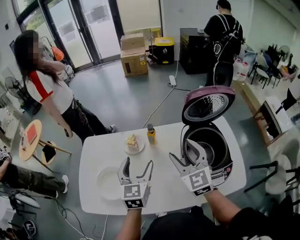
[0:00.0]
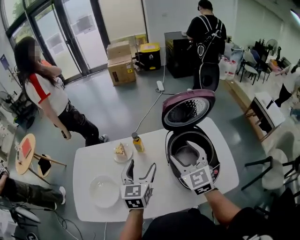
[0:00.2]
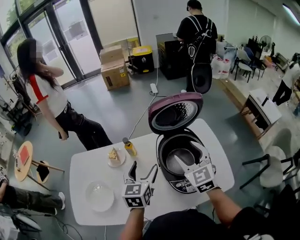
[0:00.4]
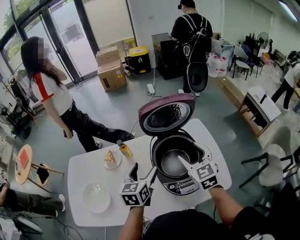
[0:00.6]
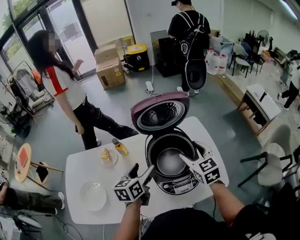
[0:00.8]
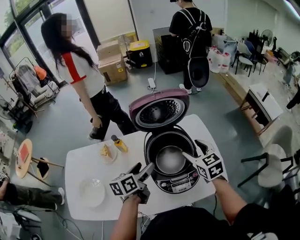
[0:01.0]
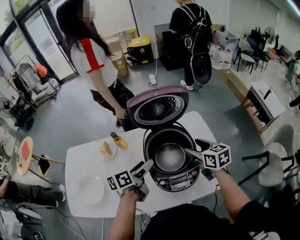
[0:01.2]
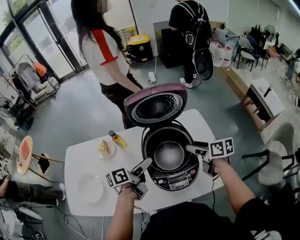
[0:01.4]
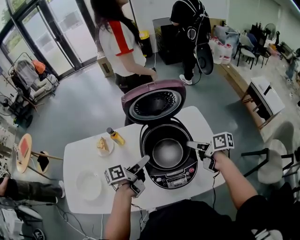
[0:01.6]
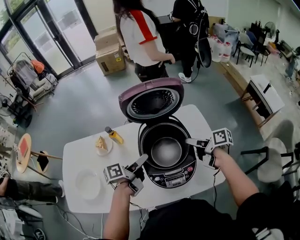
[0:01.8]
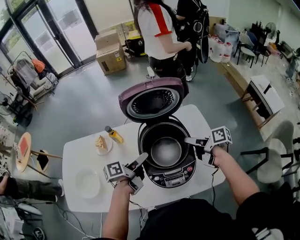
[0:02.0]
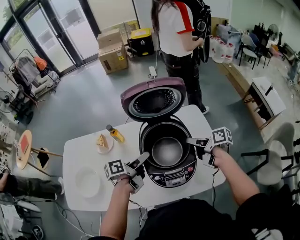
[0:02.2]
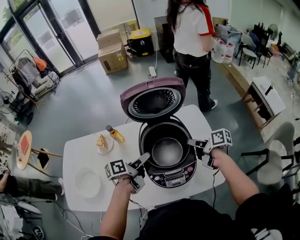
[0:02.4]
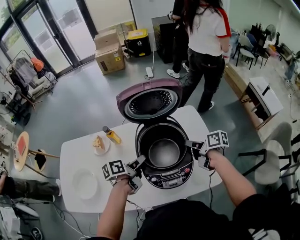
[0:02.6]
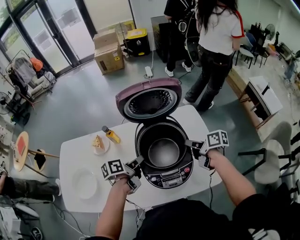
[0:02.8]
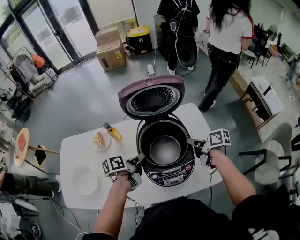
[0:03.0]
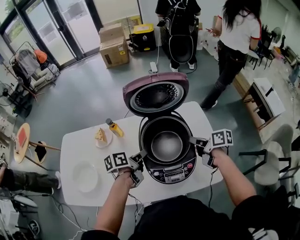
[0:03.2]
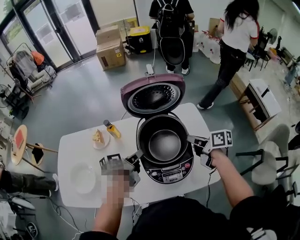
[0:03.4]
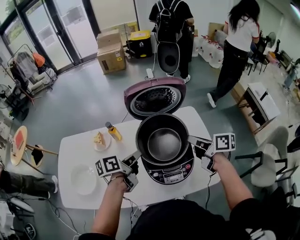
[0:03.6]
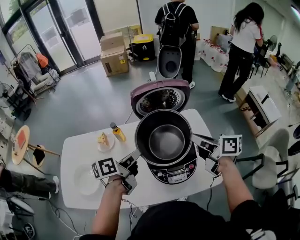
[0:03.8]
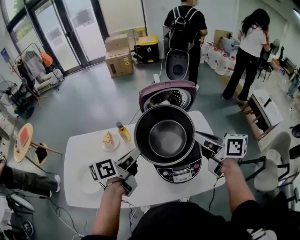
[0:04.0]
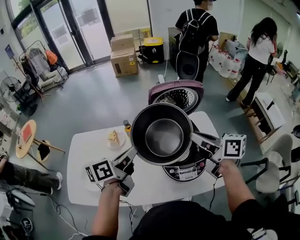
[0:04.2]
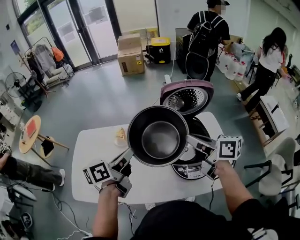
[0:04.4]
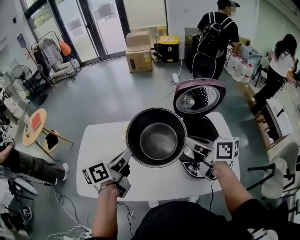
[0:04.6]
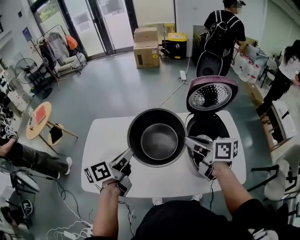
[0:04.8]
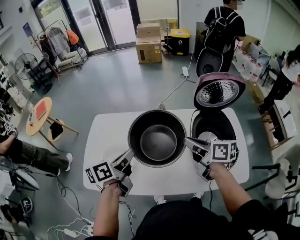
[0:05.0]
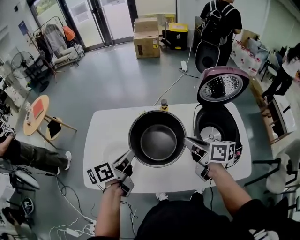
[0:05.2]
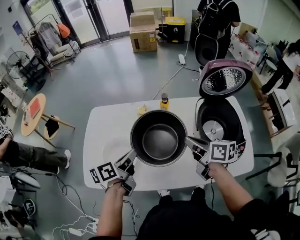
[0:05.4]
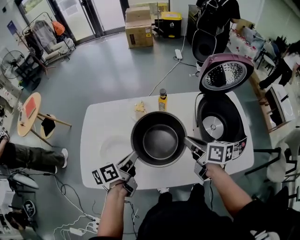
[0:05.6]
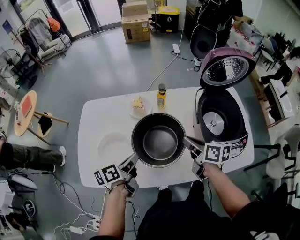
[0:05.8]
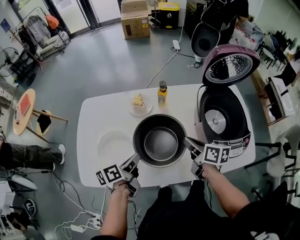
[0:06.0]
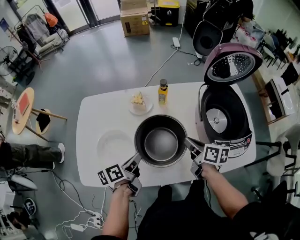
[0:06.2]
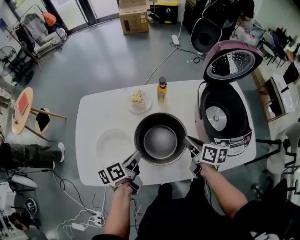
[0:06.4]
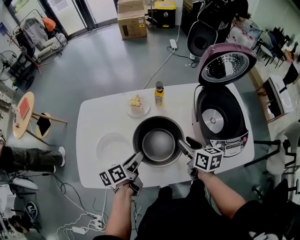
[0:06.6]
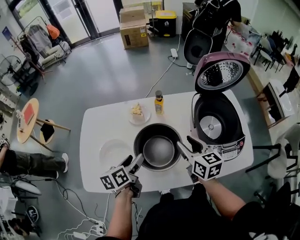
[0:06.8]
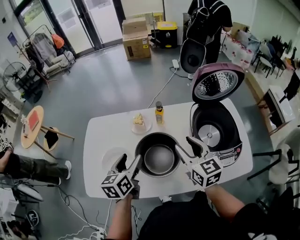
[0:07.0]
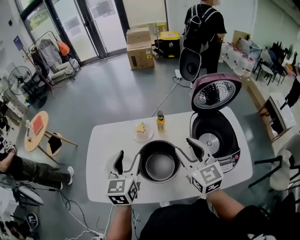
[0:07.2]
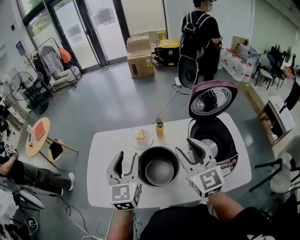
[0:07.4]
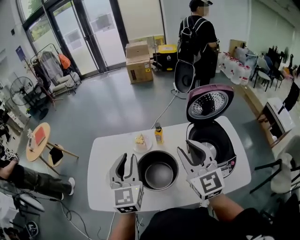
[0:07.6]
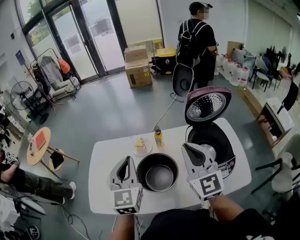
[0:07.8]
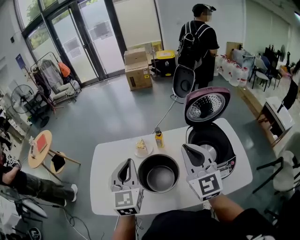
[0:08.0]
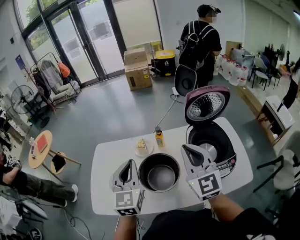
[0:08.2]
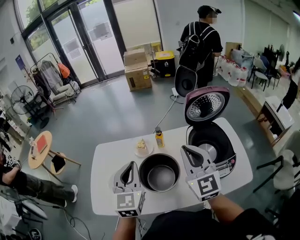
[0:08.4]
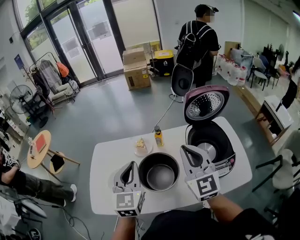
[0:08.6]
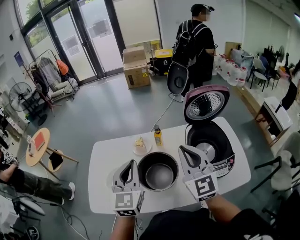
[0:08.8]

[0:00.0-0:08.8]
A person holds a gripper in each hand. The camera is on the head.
0:00.0 to 0:01.4: The right gripper heads to the right and downward, covering about 30 cm, and rolls clockwise, seen from behind, by approximately 60 degrees. Meanwhile the left gripper goes about 25 cm to the right, and twists approximately 50 degrees counterclockwise, seen from behind.
0:01.4 to 0:03.0: The left gripper closes up, while the right gripper closes up.
0:03.0 to 0:04.4: Both grippers move upward and to the left, about 25 cm. The right gripper turns by about 30 degrees. Meanwhile the left gripper swivels approximately 30 degrees.
0:04.4 to 0:05.8: The two grippers go about 25 cm downward and to the left. The right gripper turns by about 20 degrees.
0:05.8 to 0:07.4: Both grippers move upward, approximately 20 cm. The right gripper rotates around the line of its fingers by some 50 degrees, counterclockwise from behind. The left gripper twists approximately 60 degrees clockwise, seen from behind.
0:07.4 to 0:08.8: The grippers stay close to where they were, moving slightly.

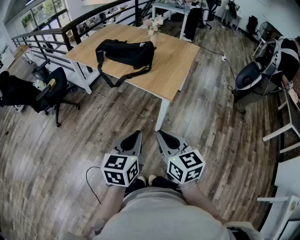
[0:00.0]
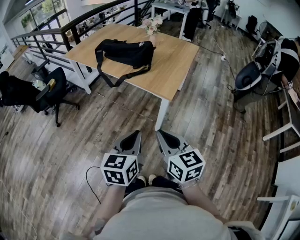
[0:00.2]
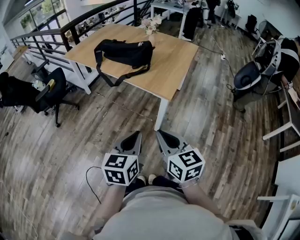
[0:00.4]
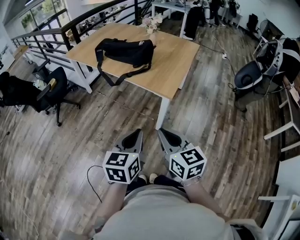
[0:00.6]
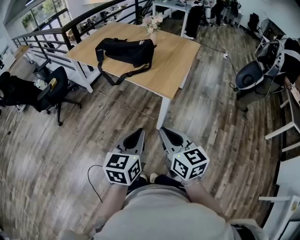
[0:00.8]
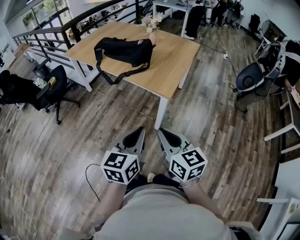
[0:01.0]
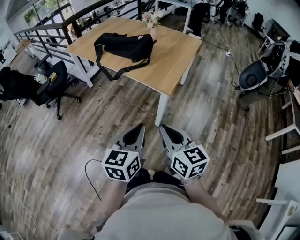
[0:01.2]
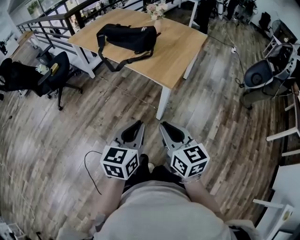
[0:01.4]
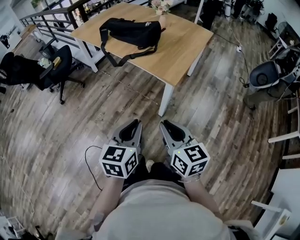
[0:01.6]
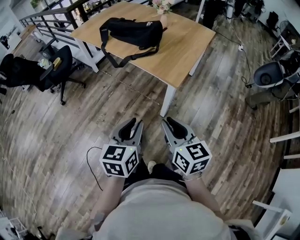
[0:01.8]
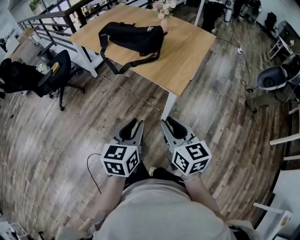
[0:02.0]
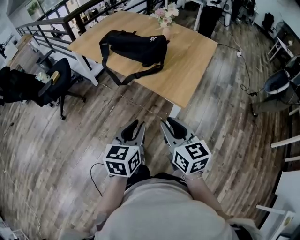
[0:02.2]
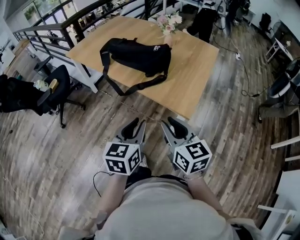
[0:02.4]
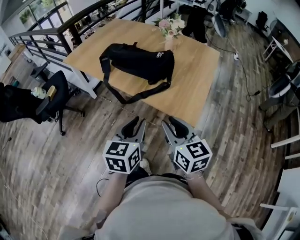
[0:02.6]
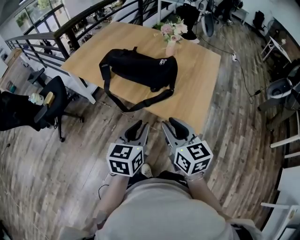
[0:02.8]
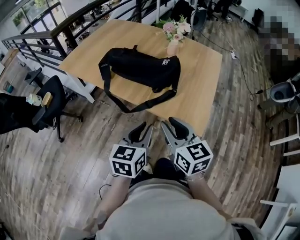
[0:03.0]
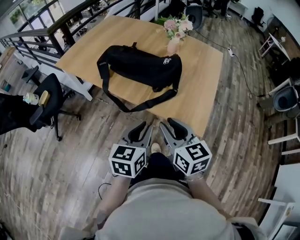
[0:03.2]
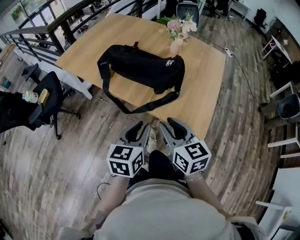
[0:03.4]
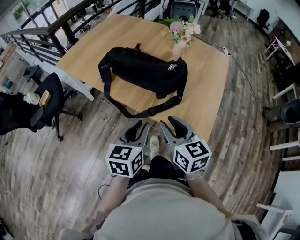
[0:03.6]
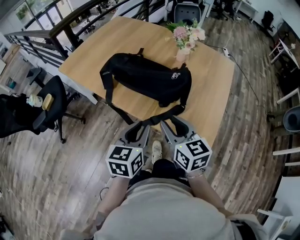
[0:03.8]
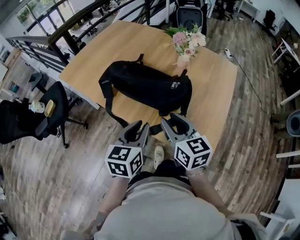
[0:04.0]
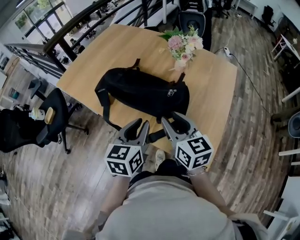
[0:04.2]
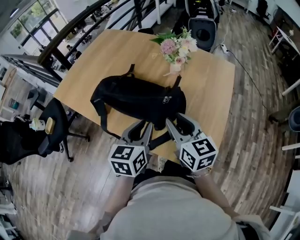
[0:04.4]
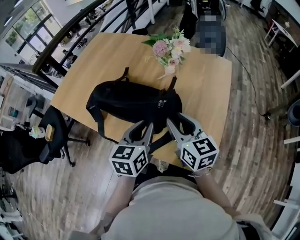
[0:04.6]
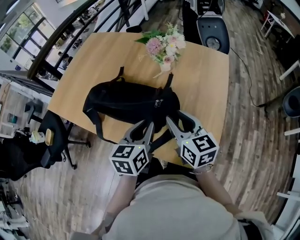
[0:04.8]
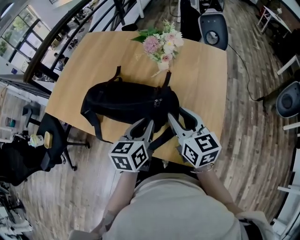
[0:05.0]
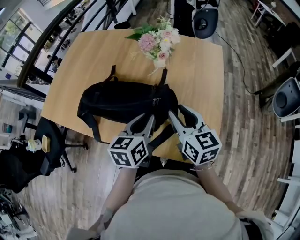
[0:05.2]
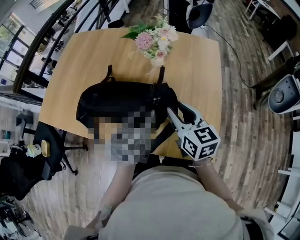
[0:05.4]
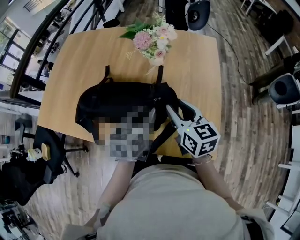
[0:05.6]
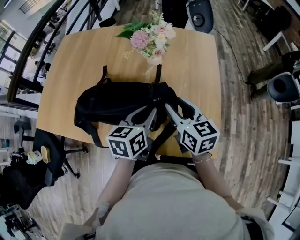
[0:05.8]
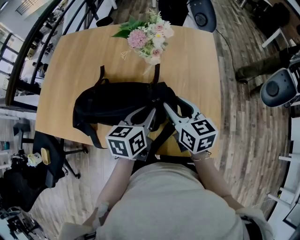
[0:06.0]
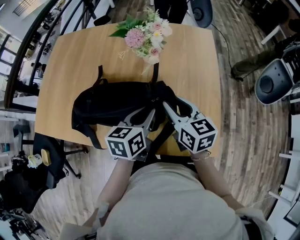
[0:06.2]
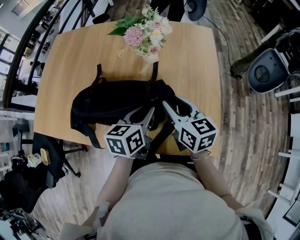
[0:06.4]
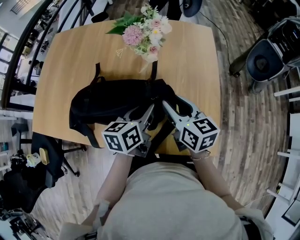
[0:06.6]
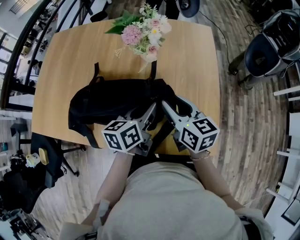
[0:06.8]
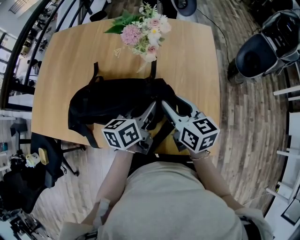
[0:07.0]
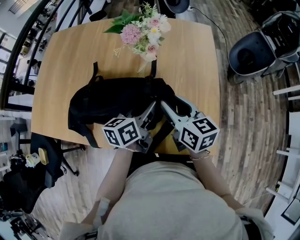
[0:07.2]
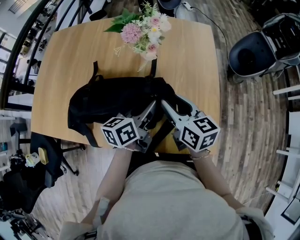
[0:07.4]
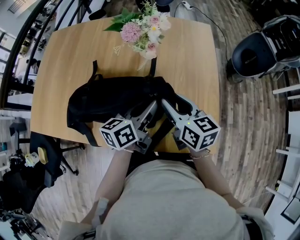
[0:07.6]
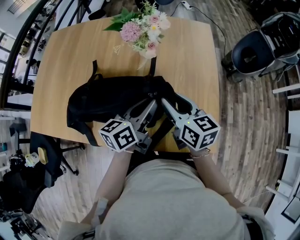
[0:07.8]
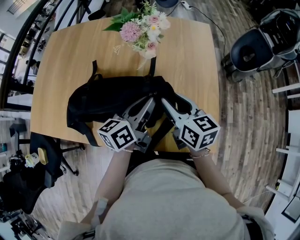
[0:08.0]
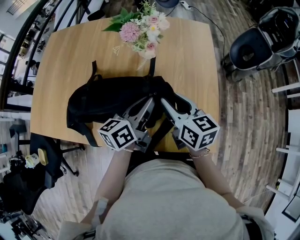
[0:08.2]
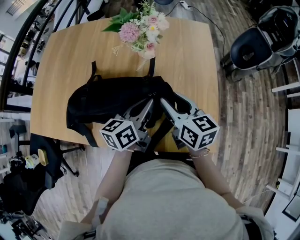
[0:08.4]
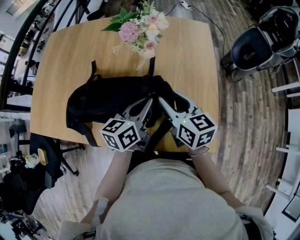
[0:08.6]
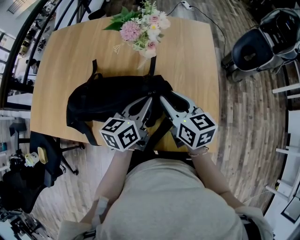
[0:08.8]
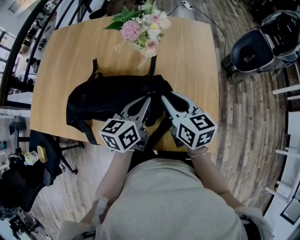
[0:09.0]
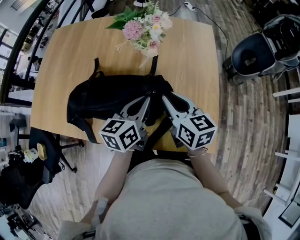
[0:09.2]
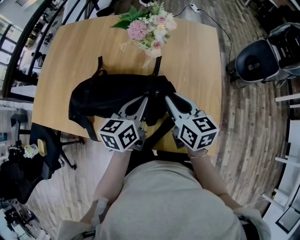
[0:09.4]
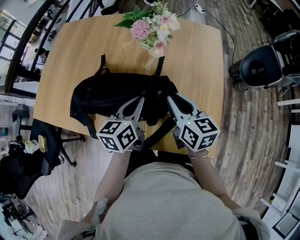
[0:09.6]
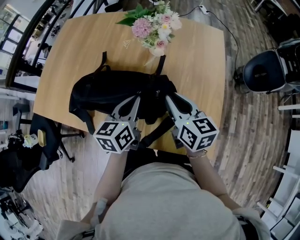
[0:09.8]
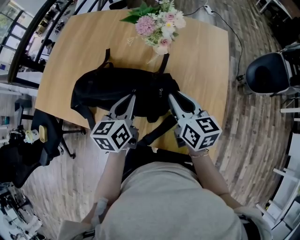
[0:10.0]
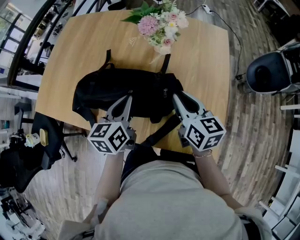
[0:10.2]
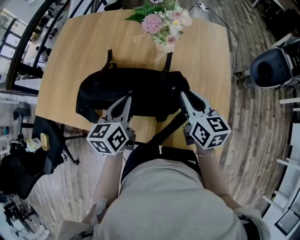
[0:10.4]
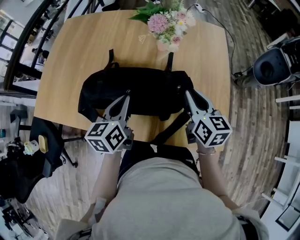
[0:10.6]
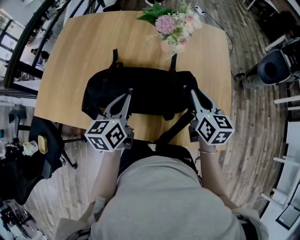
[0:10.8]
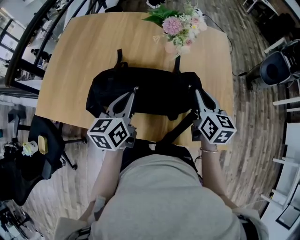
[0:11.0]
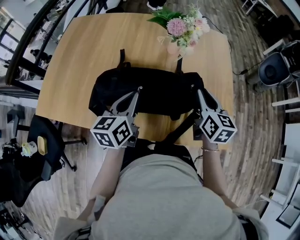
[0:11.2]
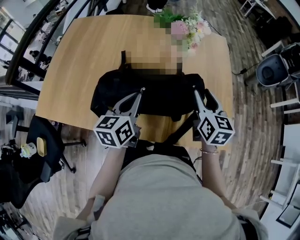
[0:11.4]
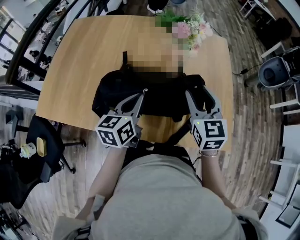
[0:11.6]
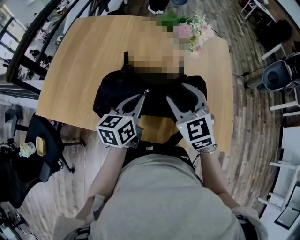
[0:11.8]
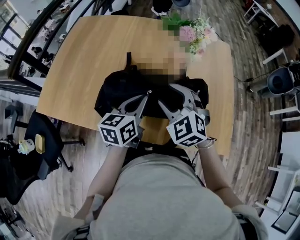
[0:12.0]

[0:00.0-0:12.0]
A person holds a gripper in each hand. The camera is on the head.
0:00.0 to 0:01.6: The right gripper ends up some 5 cm from where it was.
0:01.6 to 0:03.0: The right gripper is displaced forward and to the left by roughly 35 cm. The left gripper is displaced forward by some 30 cm.
0:03.0 to 0:04.4: Both grippers travel together forward, about 25 cm.
0:04.4 to 0:06.0: The two grippers go roughly 10 cm forward. The left gripper rotates some 30 degrees. The right gripper turns by approximately 20 degrees.
0:06.0 to 0:07.6: The left gripper rotates roughly 20 degrees.
0:07.6 to 0:09.0: There are only small adjustments of the grippers.
0:09.0 to 0:10.4: The left gripper shifts approximately 10 cm to the left.
0:10.4 to 0:12.0: The right gripper goes approximately 20 cm to the left, rotates around the line of its fingers by some 60 degrees, counterclockwise from behind, and opens its fingers.

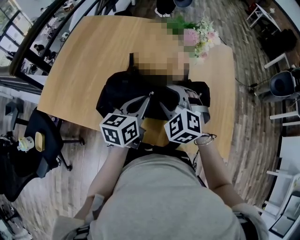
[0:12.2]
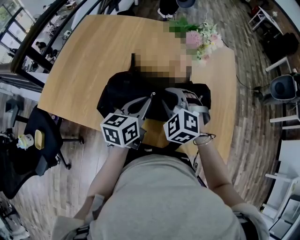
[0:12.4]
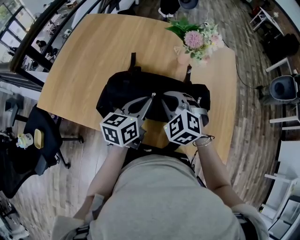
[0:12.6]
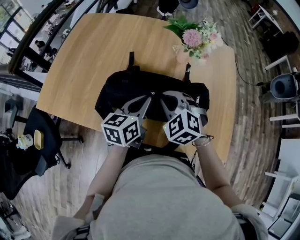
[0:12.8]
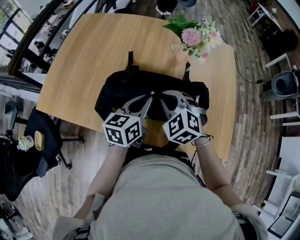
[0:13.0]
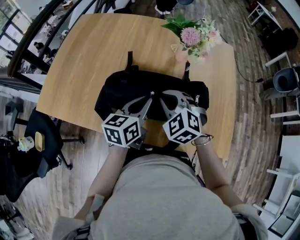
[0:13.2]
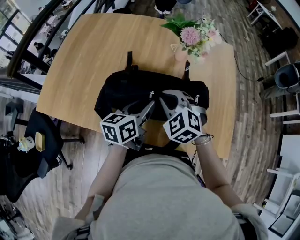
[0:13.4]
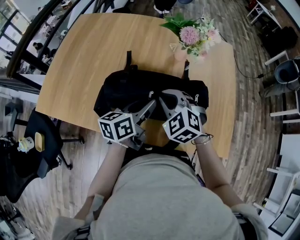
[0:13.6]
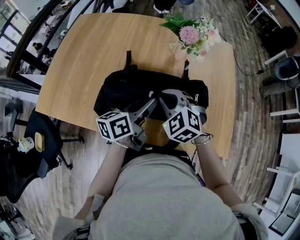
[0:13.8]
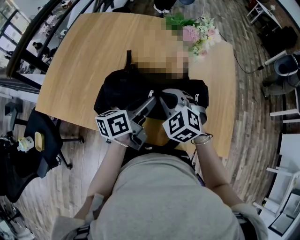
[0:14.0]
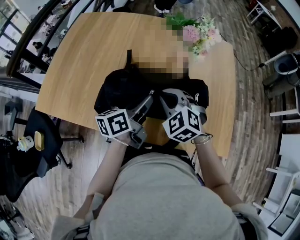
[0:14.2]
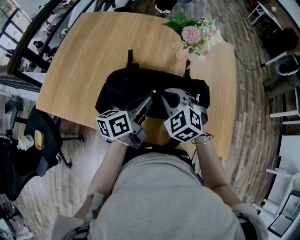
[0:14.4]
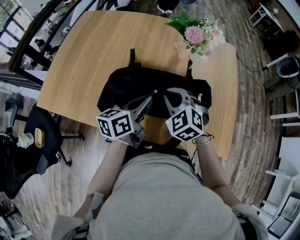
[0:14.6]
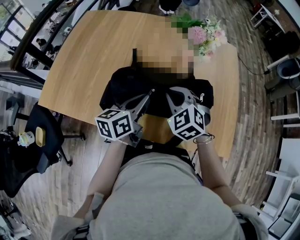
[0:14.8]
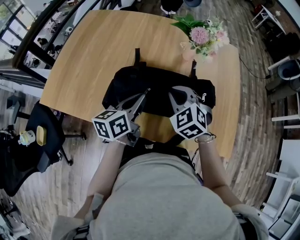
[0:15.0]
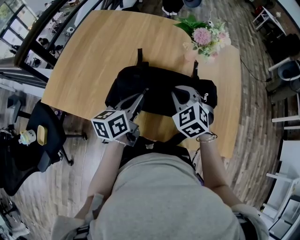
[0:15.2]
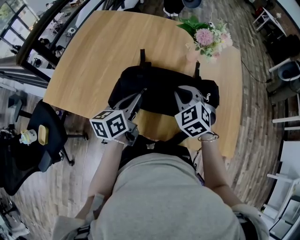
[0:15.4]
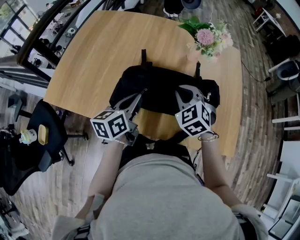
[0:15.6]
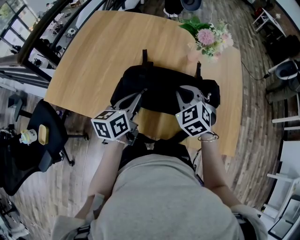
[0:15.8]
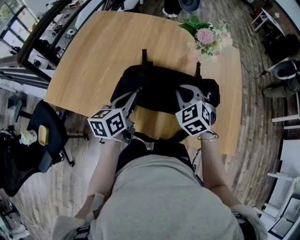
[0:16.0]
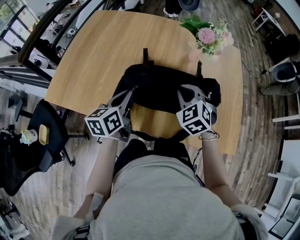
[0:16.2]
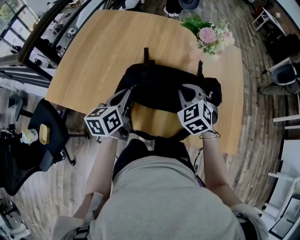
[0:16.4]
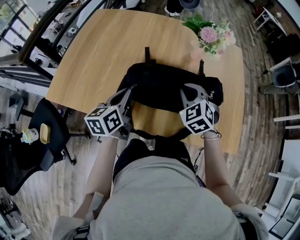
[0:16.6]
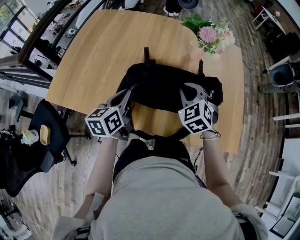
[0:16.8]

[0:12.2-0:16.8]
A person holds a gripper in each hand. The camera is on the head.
0:12.2 to 0:13.8: The left gripper swivels roughly 20 degrees, and opens. Meanwhile the right gripper closes its fingers.
0:13.8 to 0:15.2: The left gripper travels to the left by approximately 10 cm, and closes its fingers.
0:15.2 to 0:16.8: The left gripper is displaced to the left by about 10 cm.
